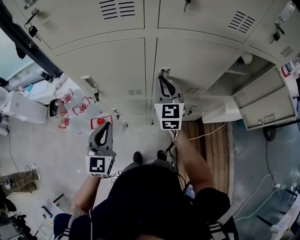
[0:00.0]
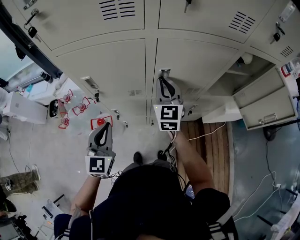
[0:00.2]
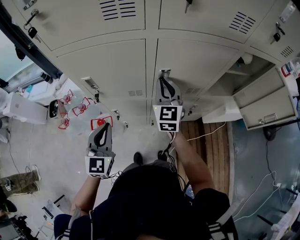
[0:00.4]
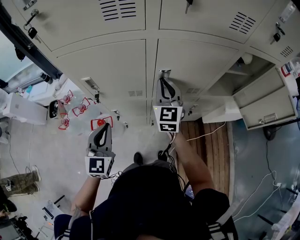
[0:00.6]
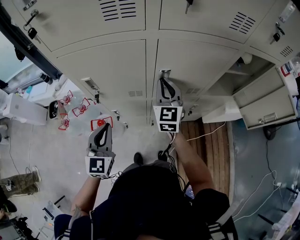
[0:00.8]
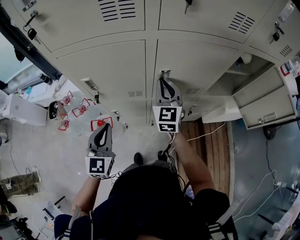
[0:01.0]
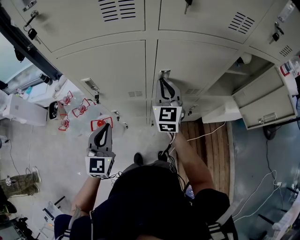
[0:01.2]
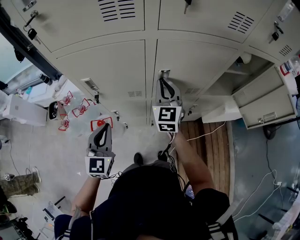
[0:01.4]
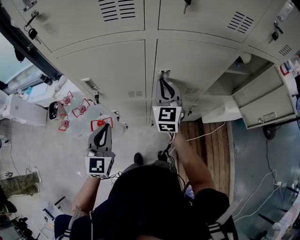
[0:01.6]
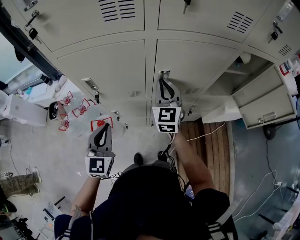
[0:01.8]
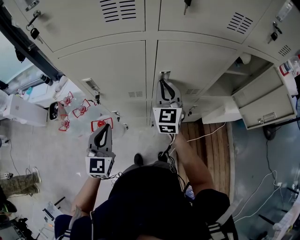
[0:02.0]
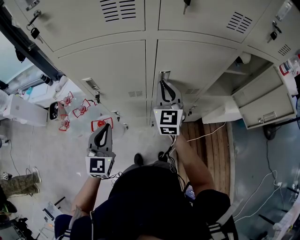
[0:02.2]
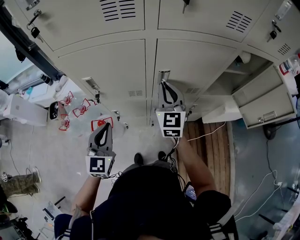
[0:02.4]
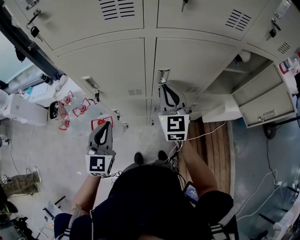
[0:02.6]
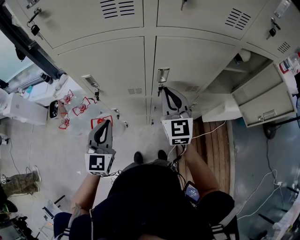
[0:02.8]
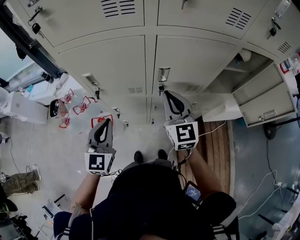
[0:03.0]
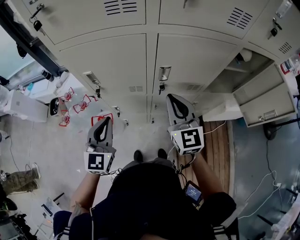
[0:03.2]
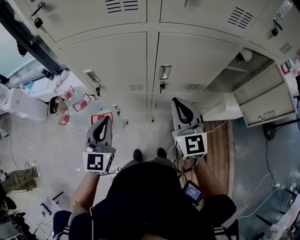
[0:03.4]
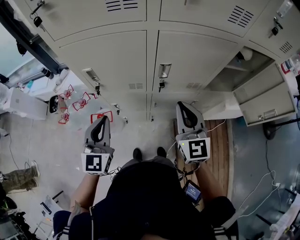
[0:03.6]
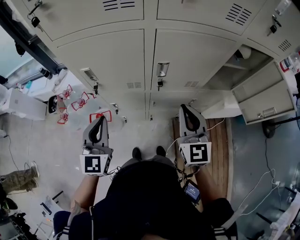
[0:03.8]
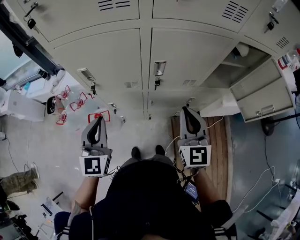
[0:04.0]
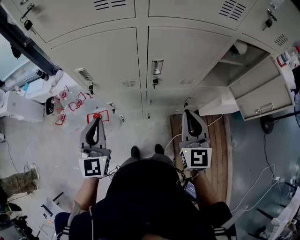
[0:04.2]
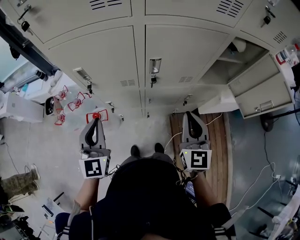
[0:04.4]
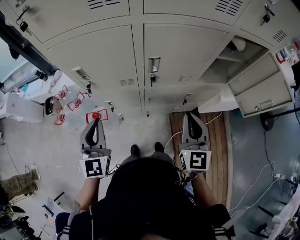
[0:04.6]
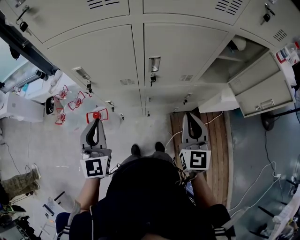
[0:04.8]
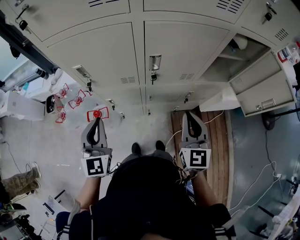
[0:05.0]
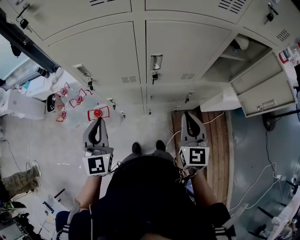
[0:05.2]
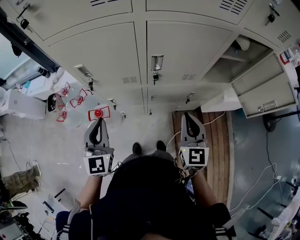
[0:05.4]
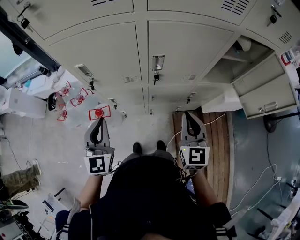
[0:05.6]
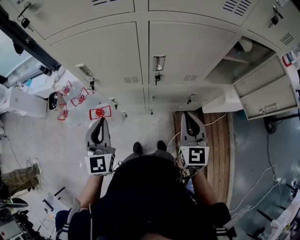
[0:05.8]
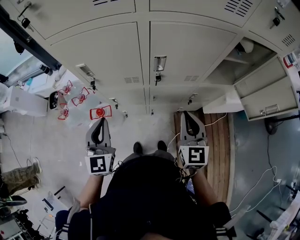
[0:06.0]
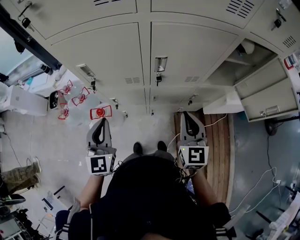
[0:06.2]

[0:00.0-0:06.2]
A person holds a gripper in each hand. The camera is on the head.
0:00.0 to 0:01.6: The grippers make only small movements.
0:01.6 to 0:03.2: The right gripper travels backward by some 10 cm.
0:03.2 to 0:04.6: The right gripper shifts roughly 15 cm backward and to the right.
0:04.6 to 0:06.2: The grippers make only small movements.

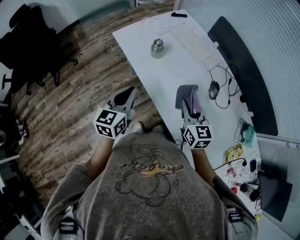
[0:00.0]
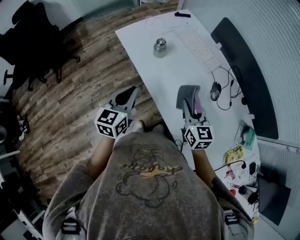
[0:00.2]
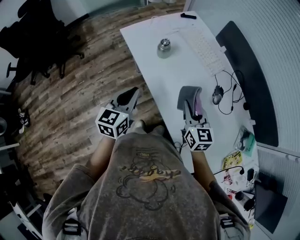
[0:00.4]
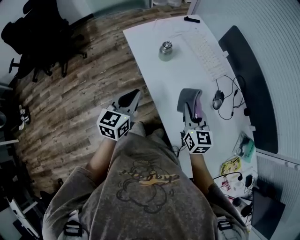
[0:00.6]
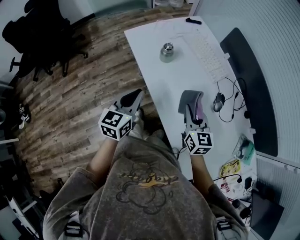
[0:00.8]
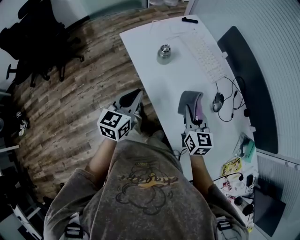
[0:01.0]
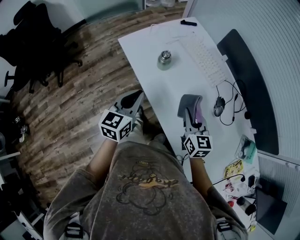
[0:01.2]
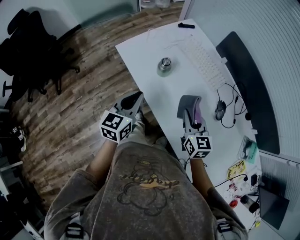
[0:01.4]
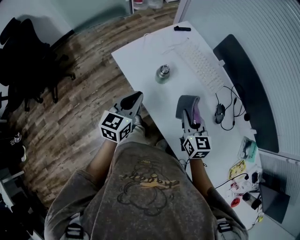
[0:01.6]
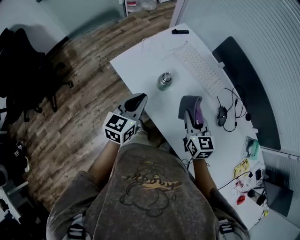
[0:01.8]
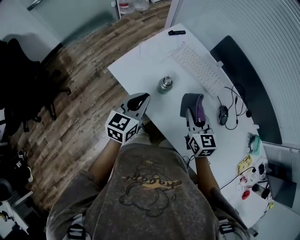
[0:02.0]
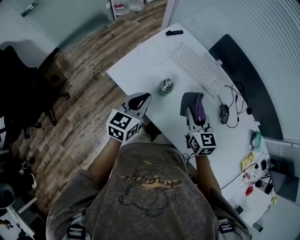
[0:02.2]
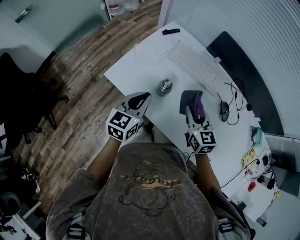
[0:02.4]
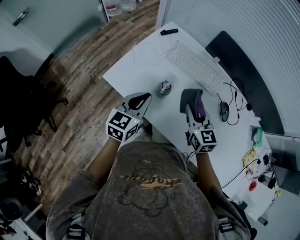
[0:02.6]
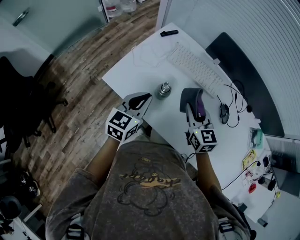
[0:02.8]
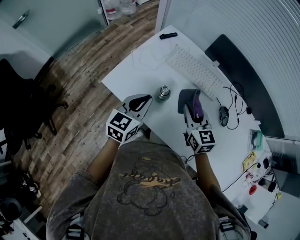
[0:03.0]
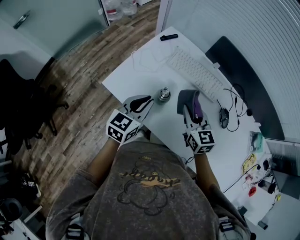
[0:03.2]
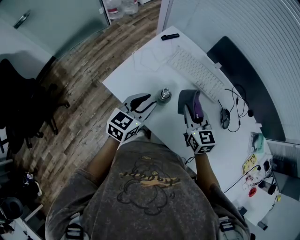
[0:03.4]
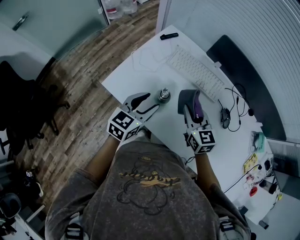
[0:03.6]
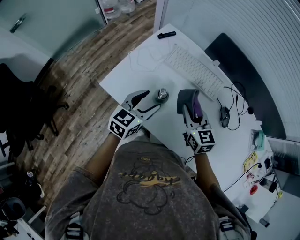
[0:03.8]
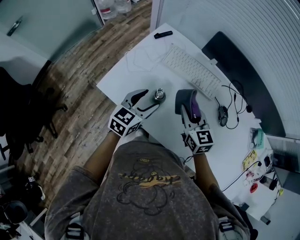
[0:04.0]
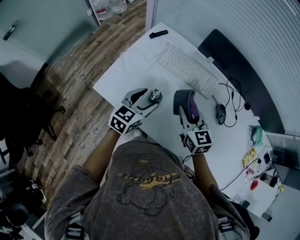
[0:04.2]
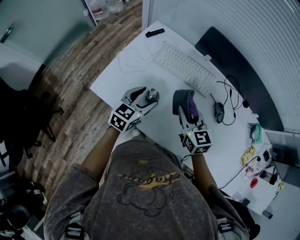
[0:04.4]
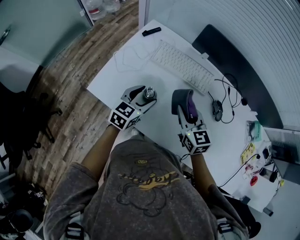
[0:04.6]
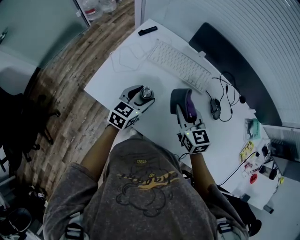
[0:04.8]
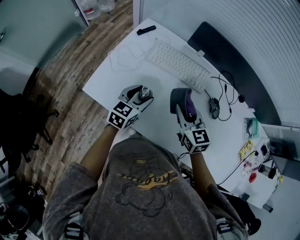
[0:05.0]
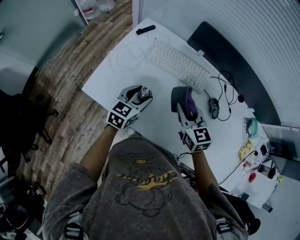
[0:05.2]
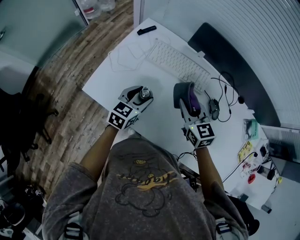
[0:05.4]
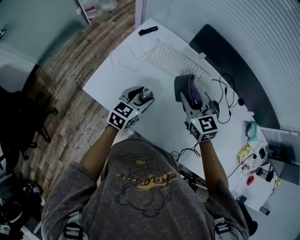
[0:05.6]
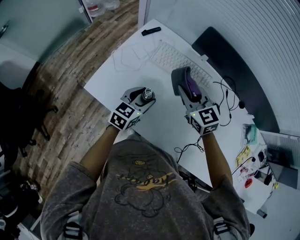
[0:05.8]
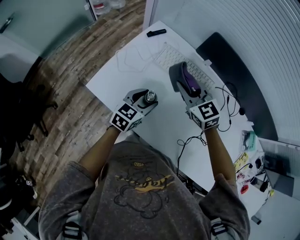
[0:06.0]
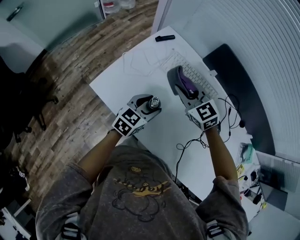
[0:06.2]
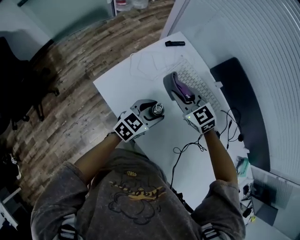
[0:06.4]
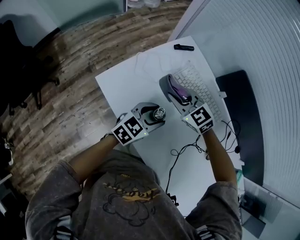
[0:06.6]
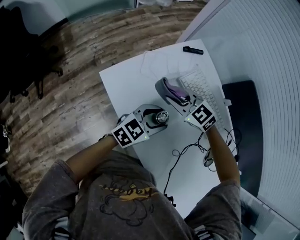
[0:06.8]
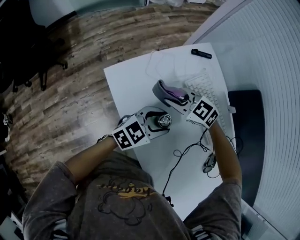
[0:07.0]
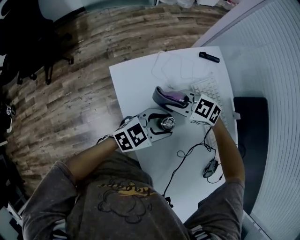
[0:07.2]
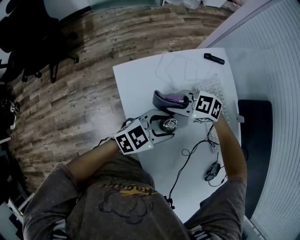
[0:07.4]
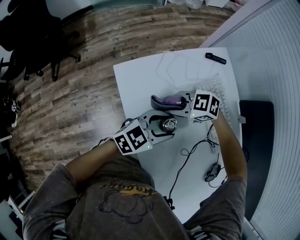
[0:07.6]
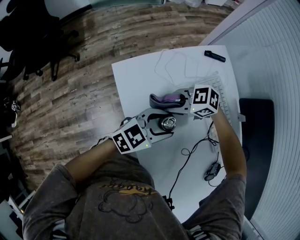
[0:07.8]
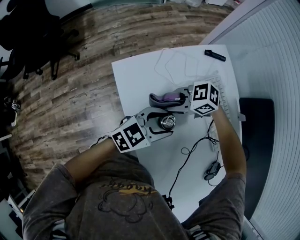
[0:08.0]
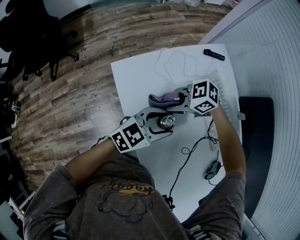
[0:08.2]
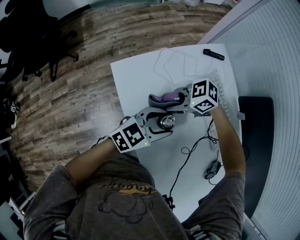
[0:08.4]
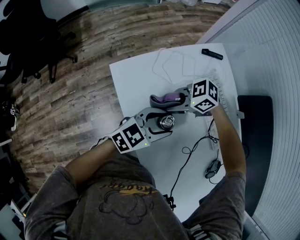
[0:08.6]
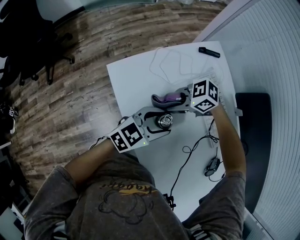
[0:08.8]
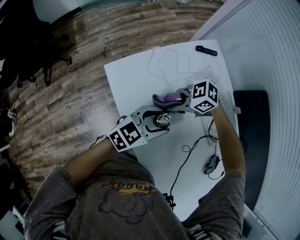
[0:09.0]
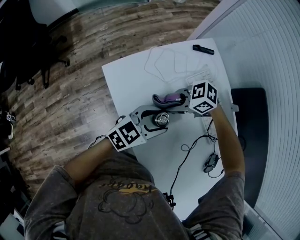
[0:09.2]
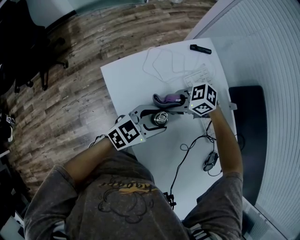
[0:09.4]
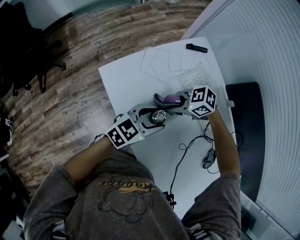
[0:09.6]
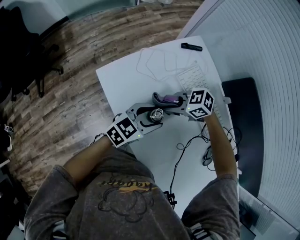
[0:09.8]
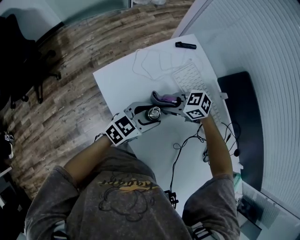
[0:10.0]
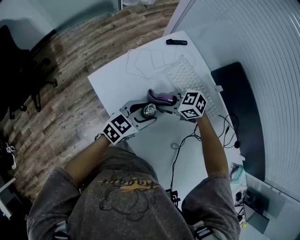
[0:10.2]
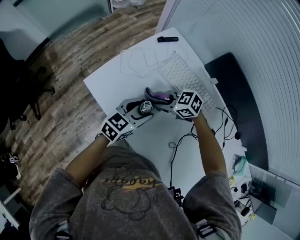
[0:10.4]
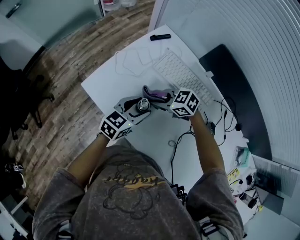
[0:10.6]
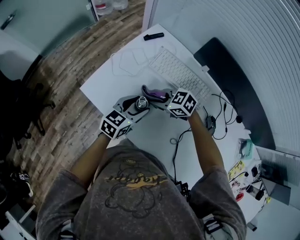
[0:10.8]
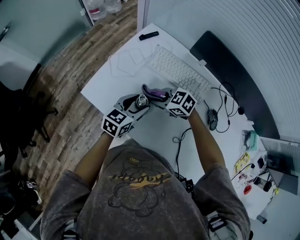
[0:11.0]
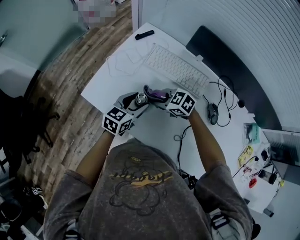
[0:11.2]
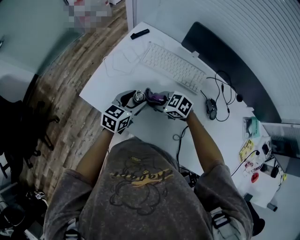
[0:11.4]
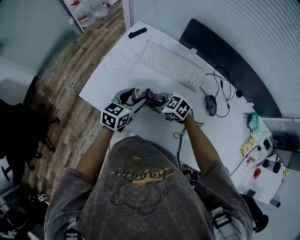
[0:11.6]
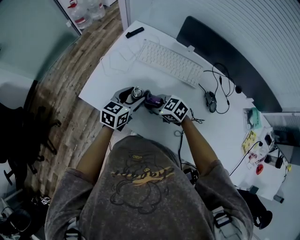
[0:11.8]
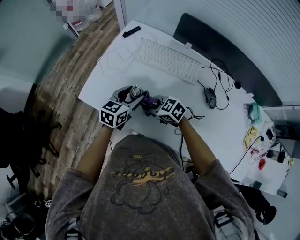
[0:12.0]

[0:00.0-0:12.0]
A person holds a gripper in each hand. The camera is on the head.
0:00.0 to 0:01.6: Both grippers move forward, some 15 cm.
0:01.6 to 0:03.0: Both grippers move forward, roughly 10 cm. The left gripper swivels approximately 20 degrees.
0:03.0 to 0:04.4: The left gripper travels downward and forward by about 10 cm, and opens.
0:04.4 to 0:06.0: The right gripper moves forward, about 10 cm, and swivels about 30 degrees.
0:06.0 to 0:07.6: The right gripper changes place by some 20 cm, and changes its angle by approximately 90 degrees.
0:07.6 to 0:09.0: There are only small adjustments of the grippers.
0:09.0 to 0:10.4: The right gripper swivels about 40 degrees.
0:10.4 to 0:12.0: The right gripper moves roughly 10 cm, and rotates approximately 30 degrees.

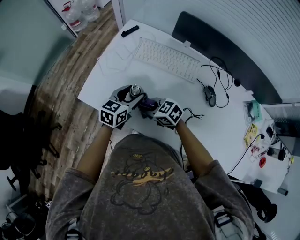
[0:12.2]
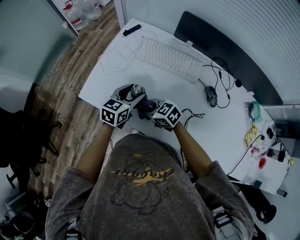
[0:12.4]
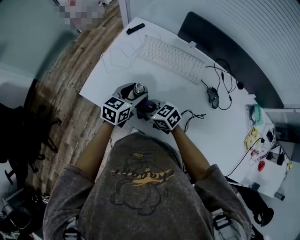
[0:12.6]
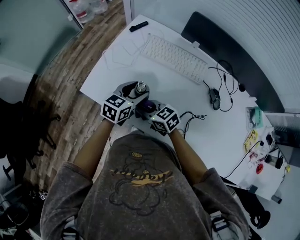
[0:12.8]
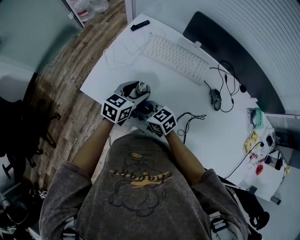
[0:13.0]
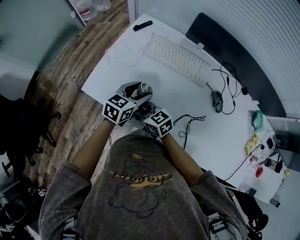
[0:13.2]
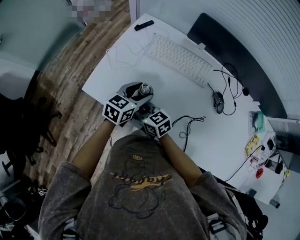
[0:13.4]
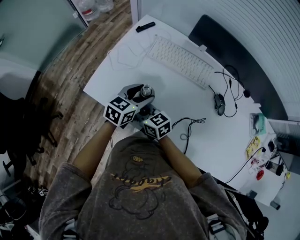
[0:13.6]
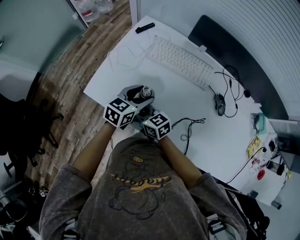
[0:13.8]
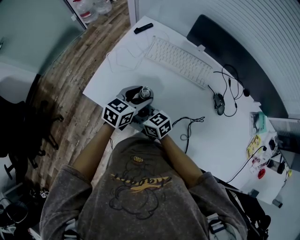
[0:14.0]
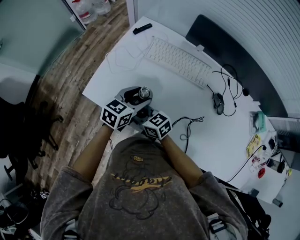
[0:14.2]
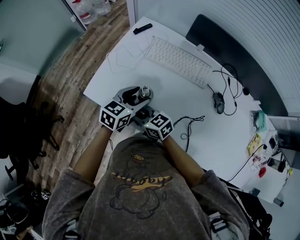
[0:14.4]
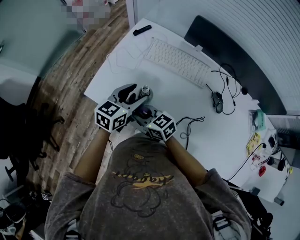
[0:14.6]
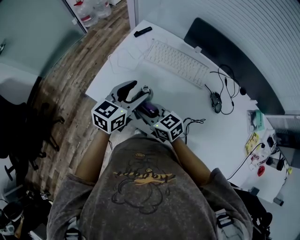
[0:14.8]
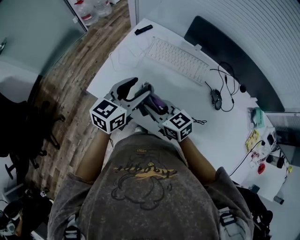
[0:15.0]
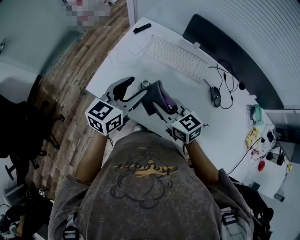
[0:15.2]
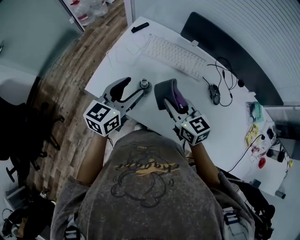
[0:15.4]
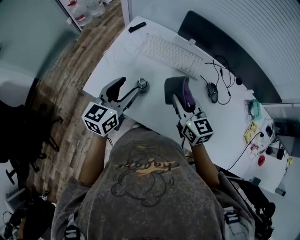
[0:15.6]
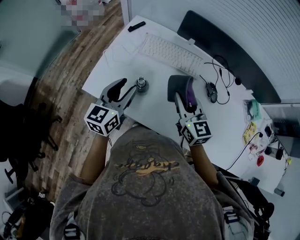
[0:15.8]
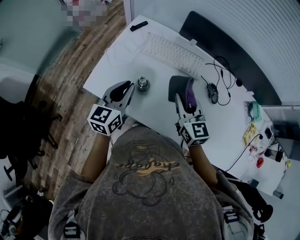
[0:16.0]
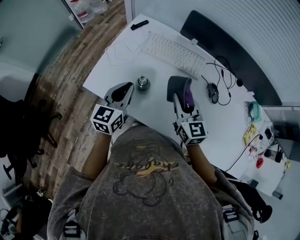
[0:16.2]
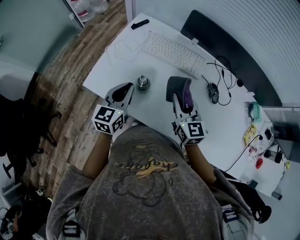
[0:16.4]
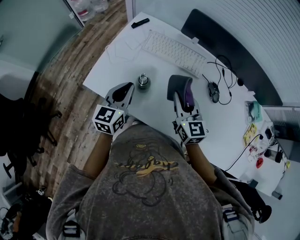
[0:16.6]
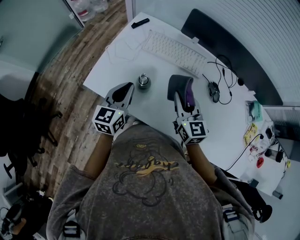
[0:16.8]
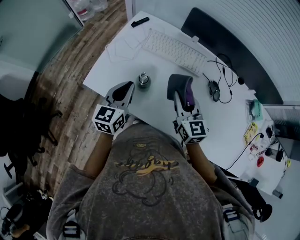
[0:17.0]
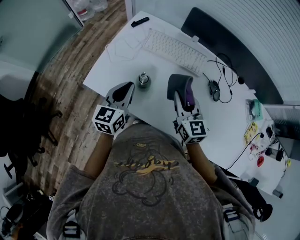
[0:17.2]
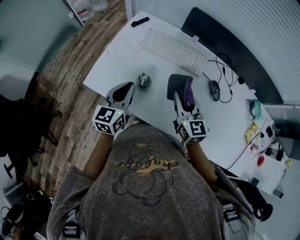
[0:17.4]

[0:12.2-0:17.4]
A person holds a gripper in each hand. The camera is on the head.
0:12.2 to 0:14.0: The right gripper shifts roughly 10 cm to the left, and swivels approximately 20 degrees.
0:14.0 to 0:15.6: The left gripper is displaced upward and to the left by approximately 15 cm. The right gripper travels to the right and upward by approximately 25 cm, and changes its angle by approximately 30 degrees.
0:15.6 to 0:17.4: The left gripper goes about 5 cm downward, and closes.
